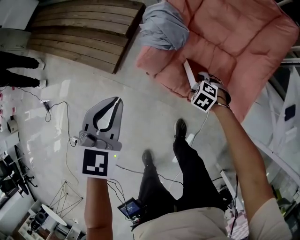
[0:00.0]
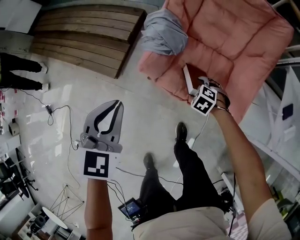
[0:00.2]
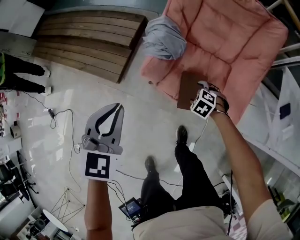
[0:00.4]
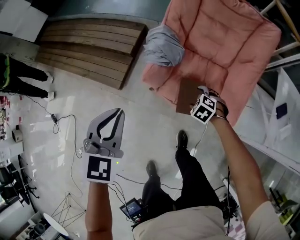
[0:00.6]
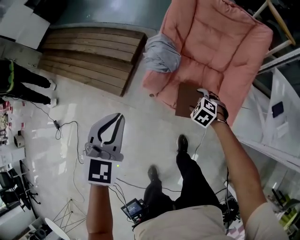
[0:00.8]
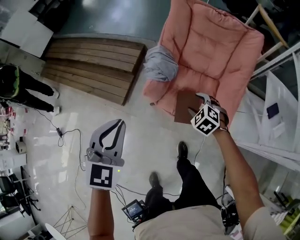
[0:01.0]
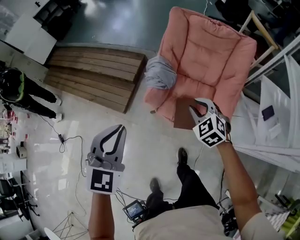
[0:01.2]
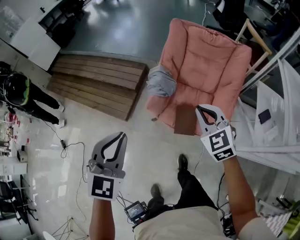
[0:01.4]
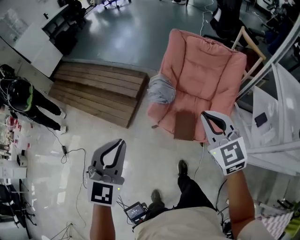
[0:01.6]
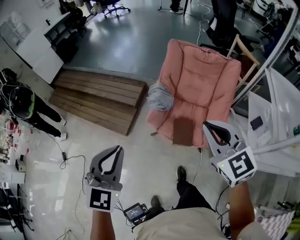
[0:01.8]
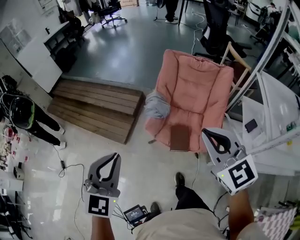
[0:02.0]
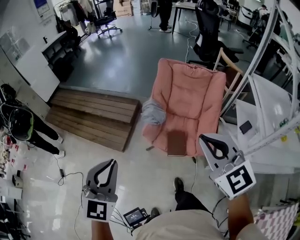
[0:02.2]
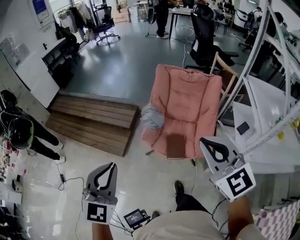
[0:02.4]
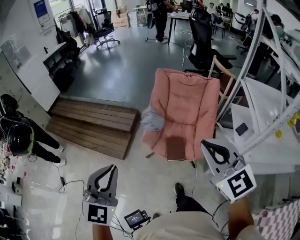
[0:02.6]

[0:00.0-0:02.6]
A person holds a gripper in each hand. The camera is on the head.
0:00.0 to 0:01.2: The right gripper heads upward, covering roughly 35 cm, tips its fingers upward by approximately 30 degrees, and closes up; the left gripper heads upward, covering roughly 25 cm.
0:01.2 to 0:02.6: The right gripper is displaced upward and backward by approximately 50 cm, and angles its fingers upward, by some 30 degrees. The left gripper shifts some 25 cm upward and backward, and swivels approximately 30 degrees.

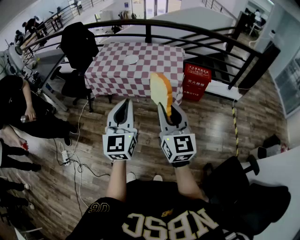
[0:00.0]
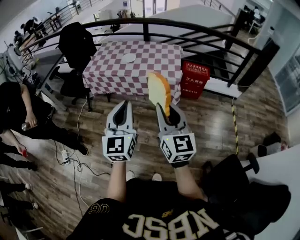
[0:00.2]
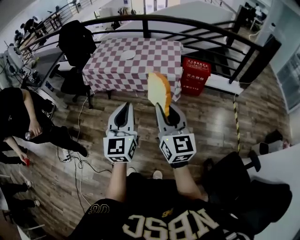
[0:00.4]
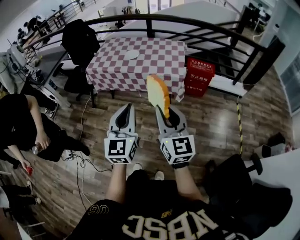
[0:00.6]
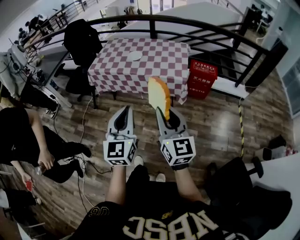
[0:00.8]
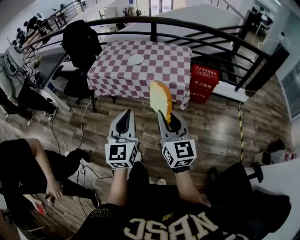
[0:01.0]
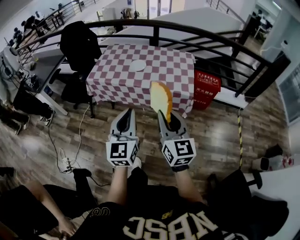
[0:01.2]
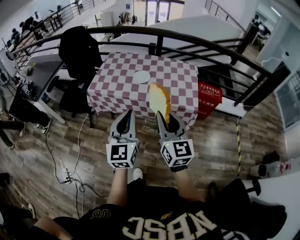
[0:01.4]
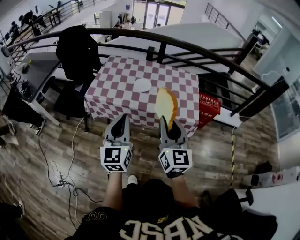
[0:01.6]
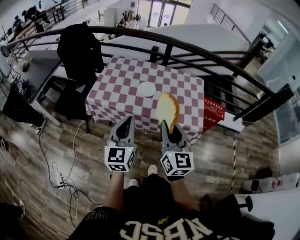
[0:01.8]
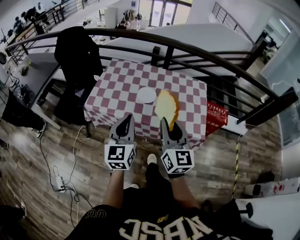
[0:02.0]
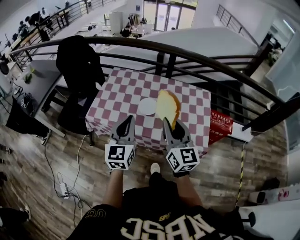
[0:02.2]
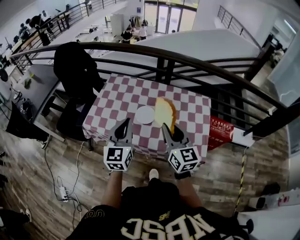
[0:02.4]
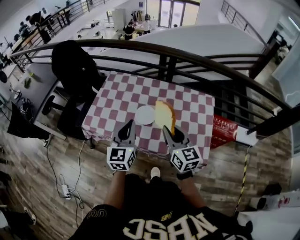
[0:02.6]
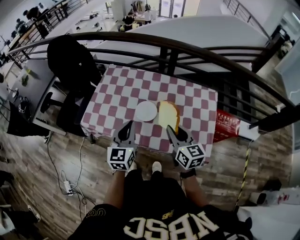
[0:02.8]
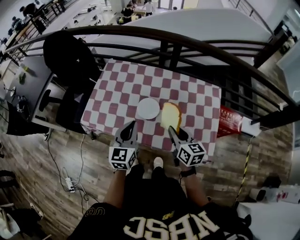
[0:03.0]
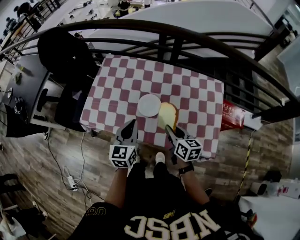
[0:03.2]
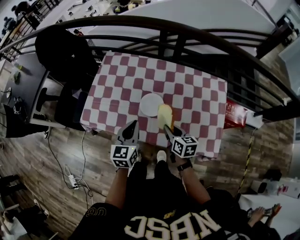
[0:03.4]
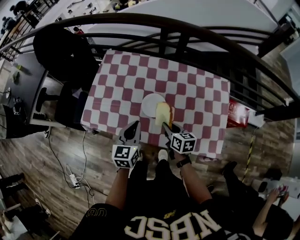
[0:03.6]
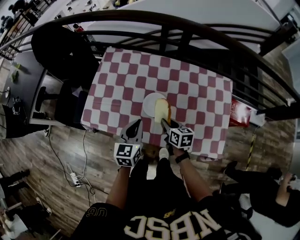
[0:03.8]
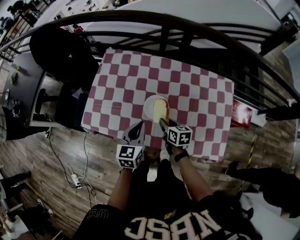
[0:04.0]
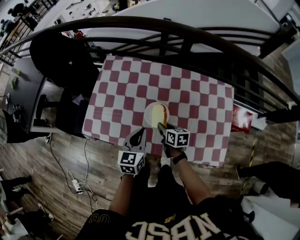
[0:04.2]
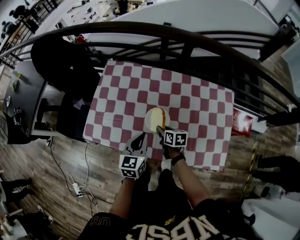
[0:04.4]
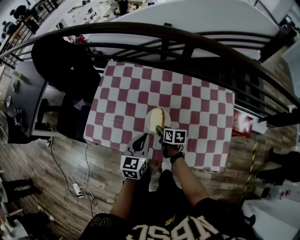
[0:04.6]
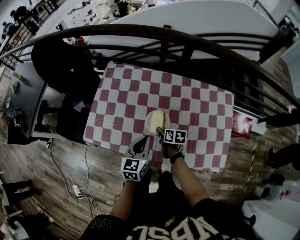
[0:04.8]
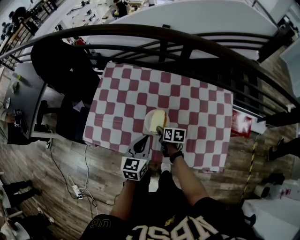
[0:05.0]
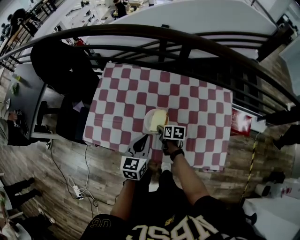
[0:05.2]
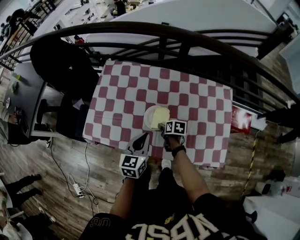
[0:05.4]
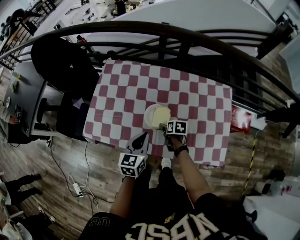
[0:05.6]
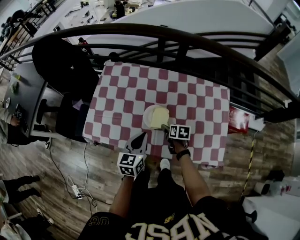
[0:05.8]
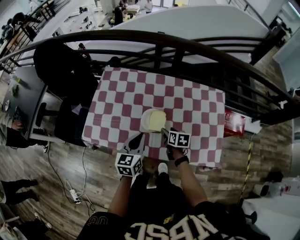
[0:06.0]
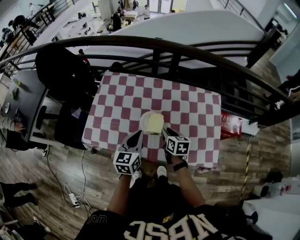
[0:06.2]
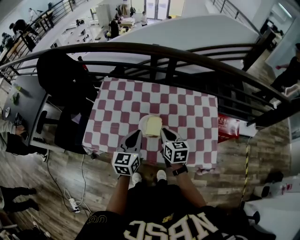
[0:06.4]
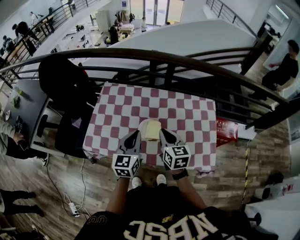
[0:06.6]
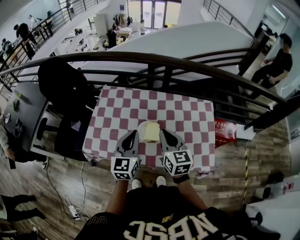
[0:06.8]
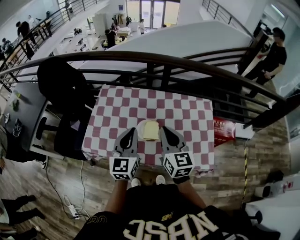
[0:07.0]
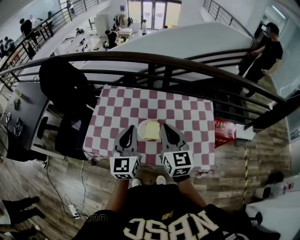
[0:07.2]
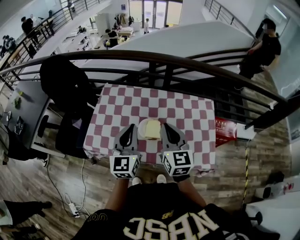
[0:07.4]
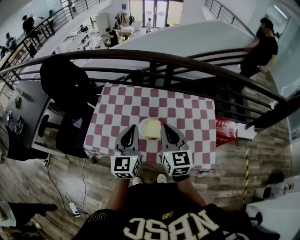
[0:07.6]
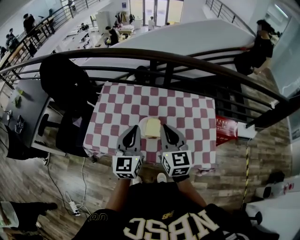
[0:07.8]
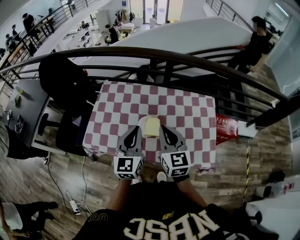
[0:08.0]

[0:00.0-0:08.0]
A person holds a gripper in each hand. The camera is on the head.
0:00.0 to 0:01.6: The grippers both shift forward and to the left by about 30 cm.
0:01.6 to 0:03.2: Both grippers move forward and downward, approximately 40 cm. The left gripper turns by some 20 degrees; the right gripper tilts its fingers about 30 degrees downward.
0:03.2 to 0:04.8: The left gripper is displaced downward by roughly 5 cm. The right gripper goes approximately 20 cm downward, forward and to the left, and changes its angle by approximately 30 degrees.
0:04.8 to 0:06.4: The right gripper moves upward, about 20 cm, rotates some 30 degrees, and opens, then closes once more; the left gripper travels upward by approximately 10 cm.
0:06.4 to 0:08.0: The right gripper is displaced upward by some 15 cm, and rotates some 30 degrees. Meanwhile the left gripper moves upward, roughly 10 cm.

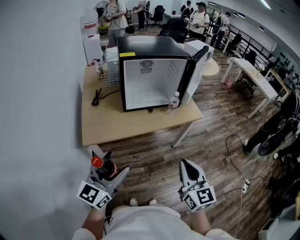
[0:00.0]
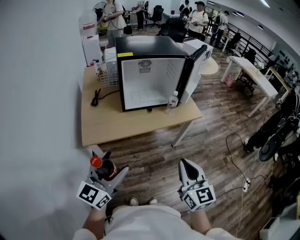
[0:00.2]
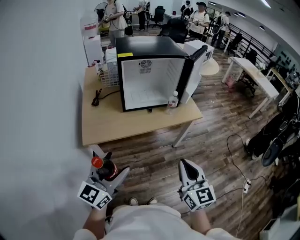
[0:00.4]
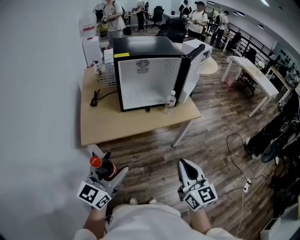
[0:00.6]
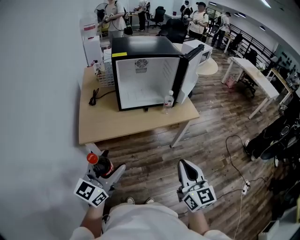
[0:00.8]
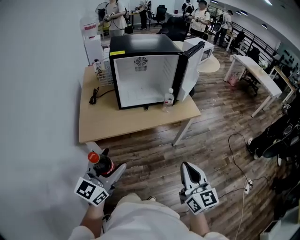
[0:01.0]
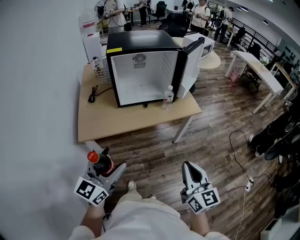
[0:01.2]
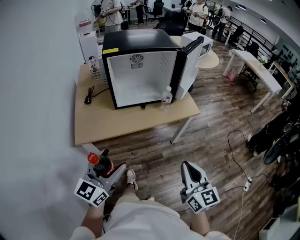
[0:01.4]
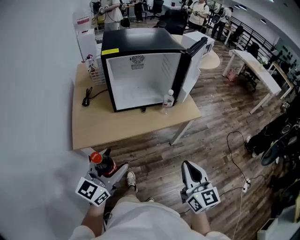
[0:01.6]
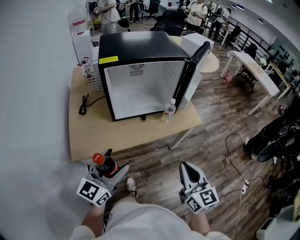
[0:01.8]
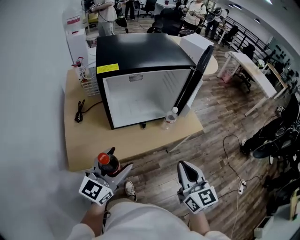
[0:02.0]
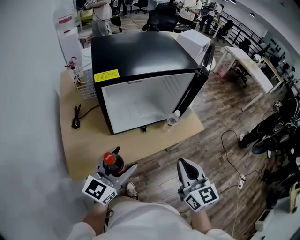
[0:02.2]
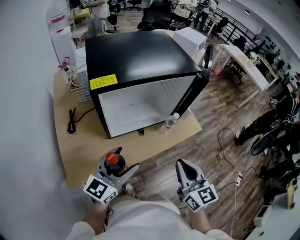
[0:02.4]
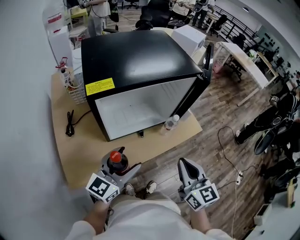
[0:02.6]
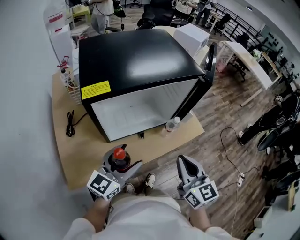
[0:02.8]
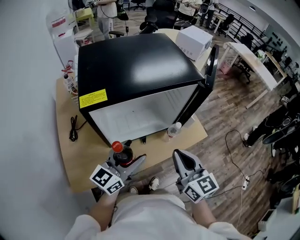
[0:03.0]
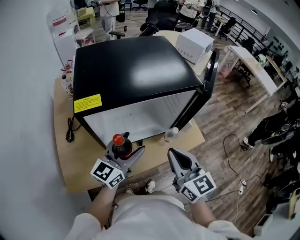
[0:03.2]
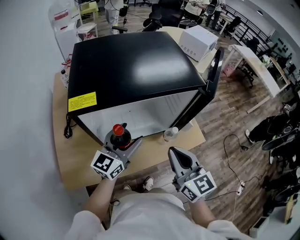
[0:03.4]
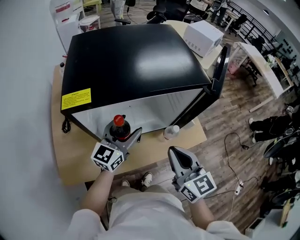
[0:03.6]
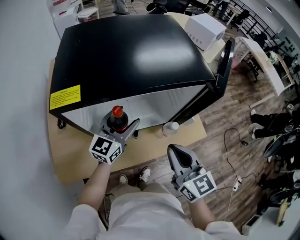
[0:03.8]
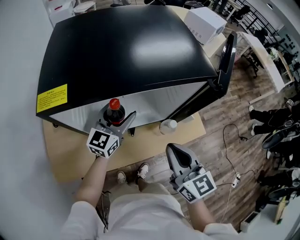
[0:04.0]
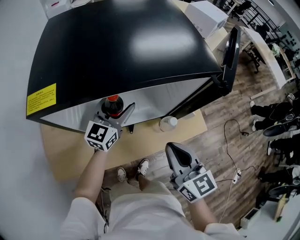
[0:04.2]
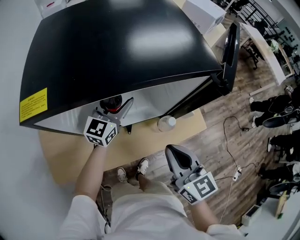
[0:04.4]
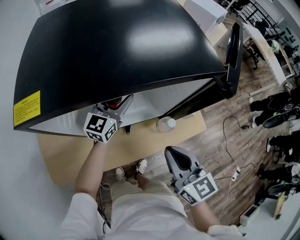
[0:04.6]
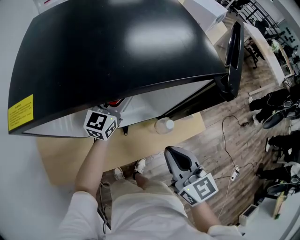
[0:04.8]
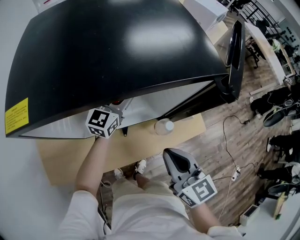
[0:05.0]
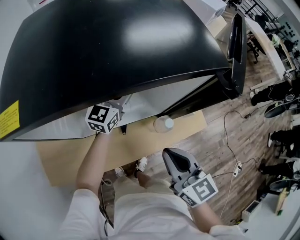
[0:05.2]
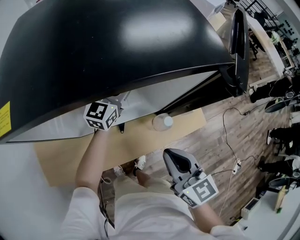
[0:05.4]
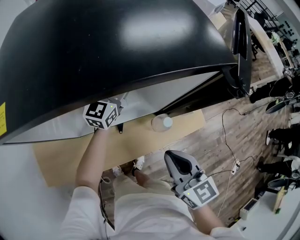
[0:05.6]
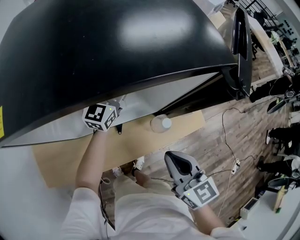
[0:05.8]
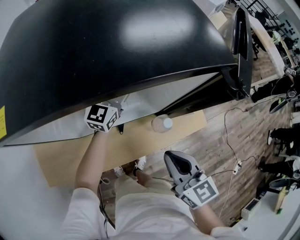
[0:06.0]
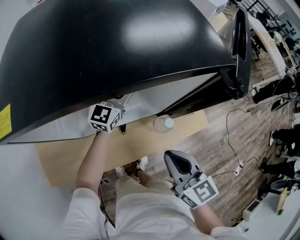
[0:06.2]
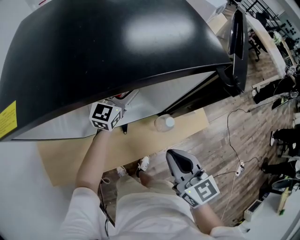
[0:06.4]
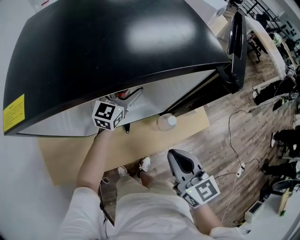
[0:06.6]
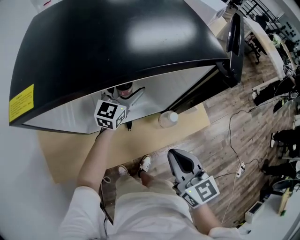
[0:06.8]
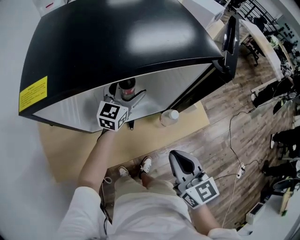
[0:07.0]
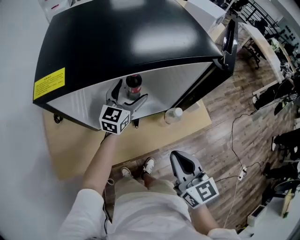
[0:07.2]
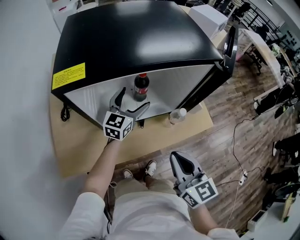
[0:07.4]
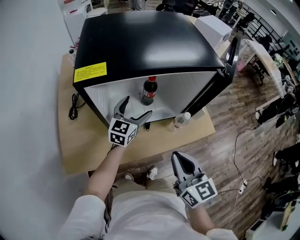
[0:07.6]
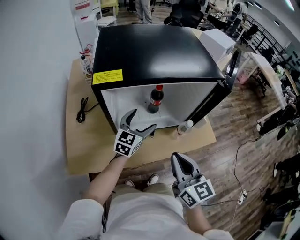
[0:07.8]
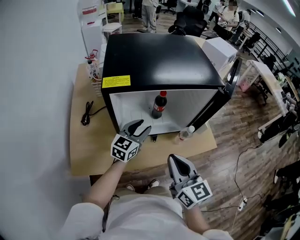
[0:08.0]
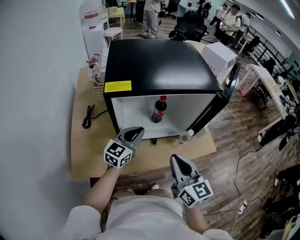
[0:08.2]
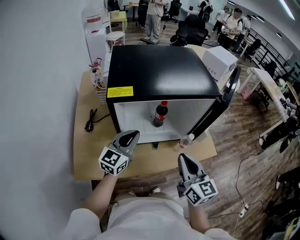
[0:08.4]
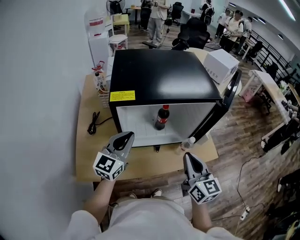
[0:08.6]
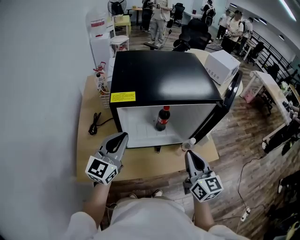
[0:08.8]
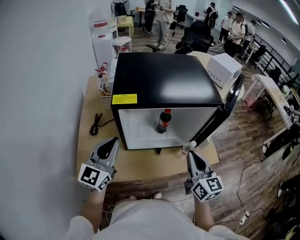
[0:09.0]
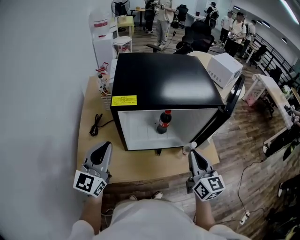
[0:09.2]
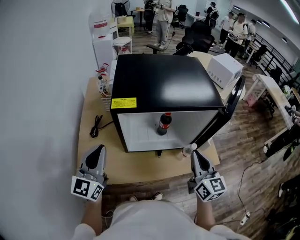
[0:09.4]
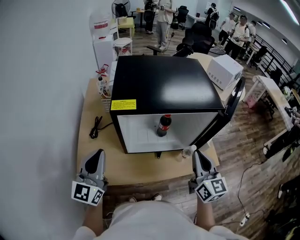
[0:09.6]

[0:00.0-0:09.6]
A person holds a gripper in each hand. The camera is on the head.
0:00.0 to 0:01.6: The right gripper is displaced to the right and forward by about 10 cm. The left gripper shifts roughly 10 cm forward and to the right.
0:01.6 to 0:03.2: The right gripper moves forward and to the left, about 30 cm. The left gripper goes approximately 35 cm forward.
0:03.2 to 0:04.8: The left gripper travels forward and downward by some 25 cm, while the right gripper goes roughly 10 cm downward and to the right.
0:04.8 to 0:06.4: The left gripper changes place by roughly 5 cm.
0:06.4 to 0:08.0: The right gripper shifts about 15 cm to the left, backward and upward. Meanwhile the left gripper shifts some 20 cm backward and to the left, and closes up.
0:08.0 to 0:09.6: The right gripper heads to the right and forward, covering some 10 cm, while the left gripper heads to the left, upward and backward, covering approximately 25 cm, turns by some 30 degrees, and closes its fingers.

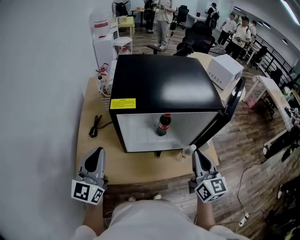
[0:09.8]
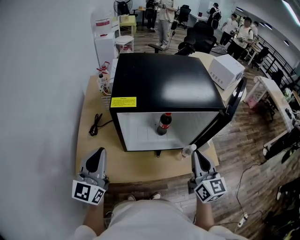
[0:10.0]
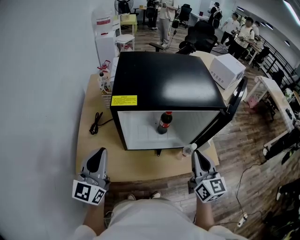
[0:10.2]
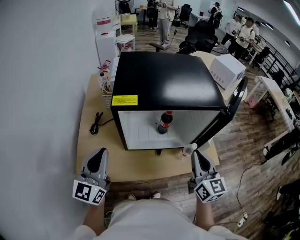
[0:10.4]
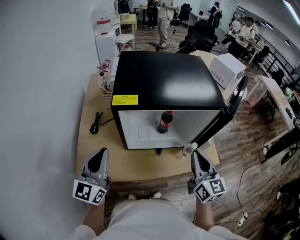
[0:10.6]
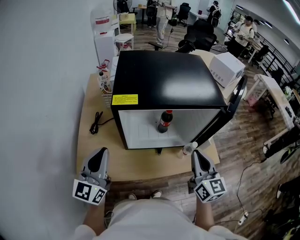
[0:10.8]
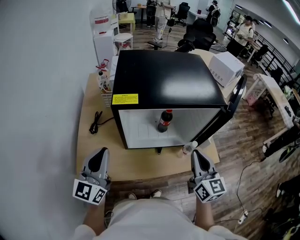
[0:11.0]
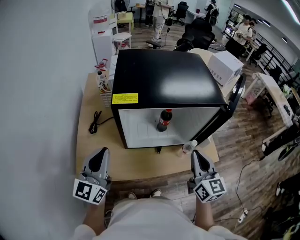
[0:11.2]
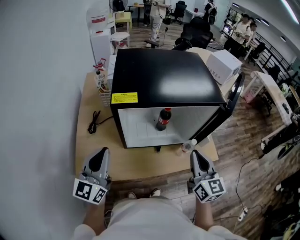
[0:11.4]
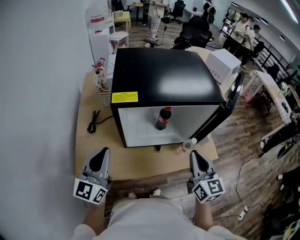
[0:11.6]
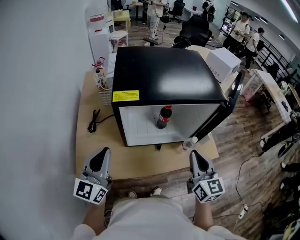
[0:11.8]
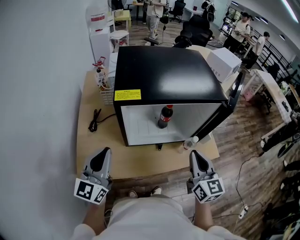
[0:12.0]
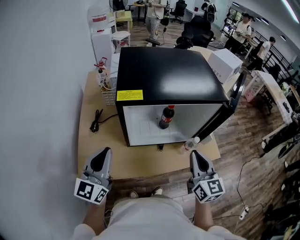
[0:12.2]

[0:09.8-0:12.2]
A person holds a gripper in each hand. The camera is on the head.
0:09.8 to 0:12.2: The grippers stay close to where they were, moving slightly.
